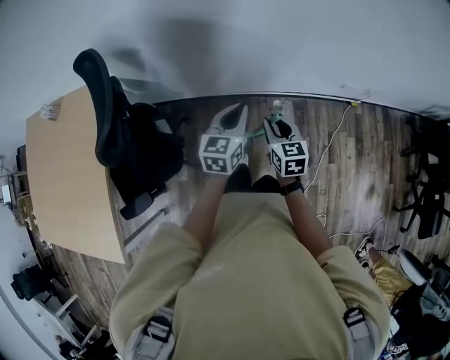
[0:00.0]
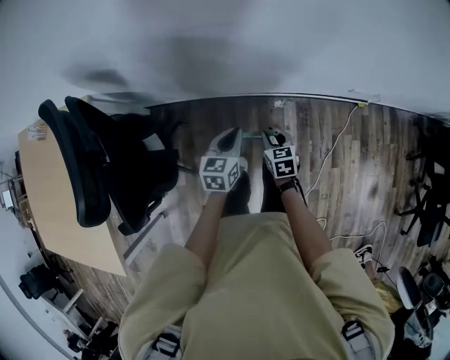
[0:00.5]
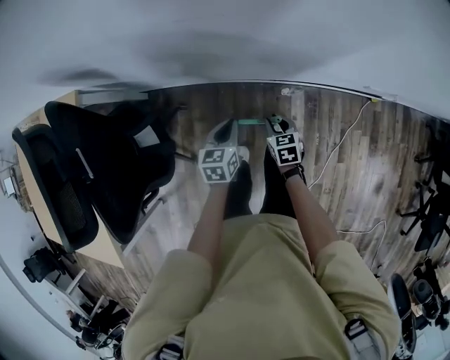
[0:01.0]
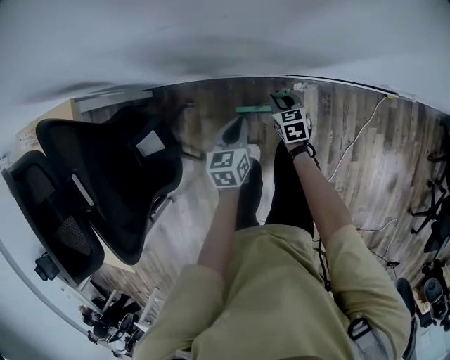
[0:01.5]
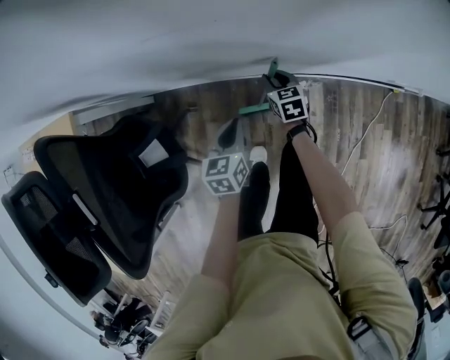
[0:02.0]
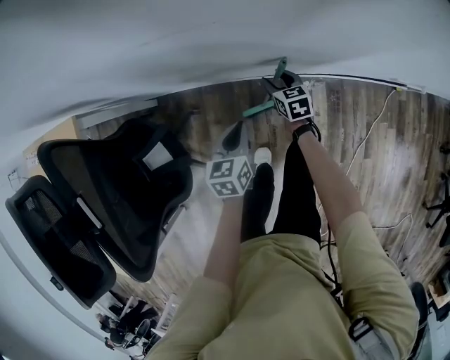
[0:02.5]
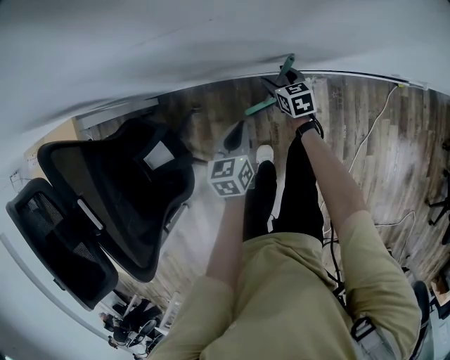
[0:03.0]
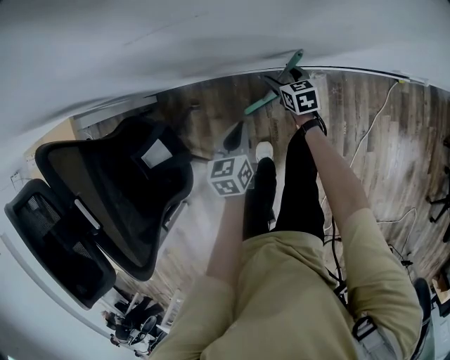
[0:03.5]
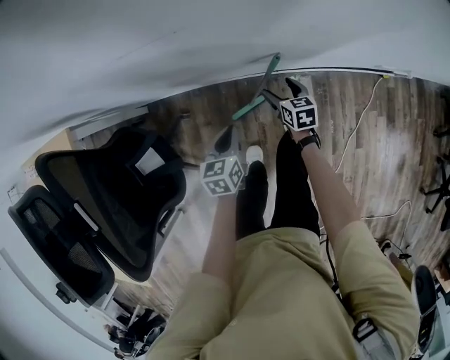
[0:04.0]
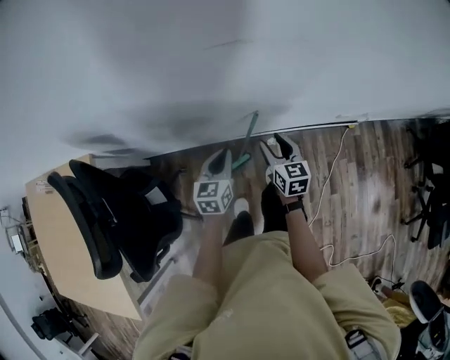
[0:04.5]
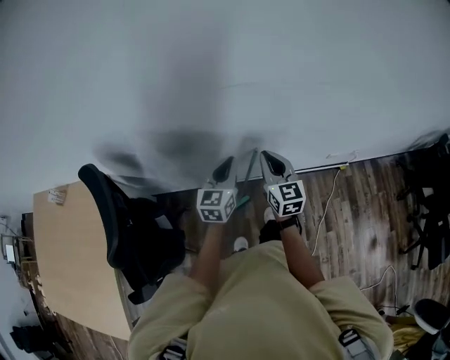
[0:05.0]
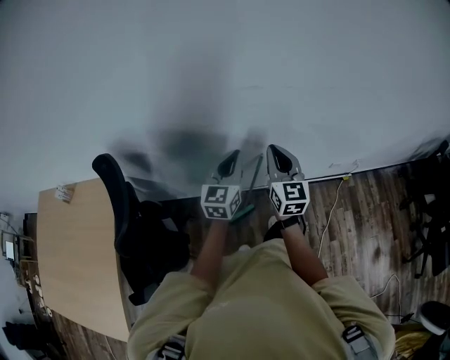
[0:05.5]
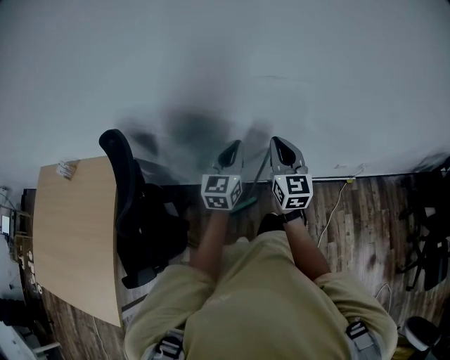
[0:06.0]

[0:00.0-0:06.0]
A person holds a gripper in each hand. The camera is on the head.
0.0 to 2.0 s: Both grippers travel together downward and forward, approximately 40 cm. The left gripper changes its angle by roughly 30 degrees.
2.0 to 4.0 s: The right gripper travels to the right and backward by approximately 10 cm, and opens up.
4.0 to 6.0 s: The two grippers go about 50 cm upward. The left gripper tips its fingers upward by some 40 degrees, while the right gripper points its fingers about 40 degrees further upward, and closes up.

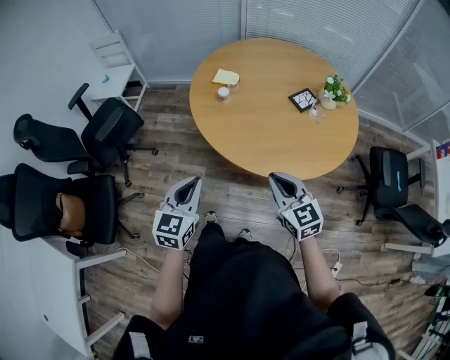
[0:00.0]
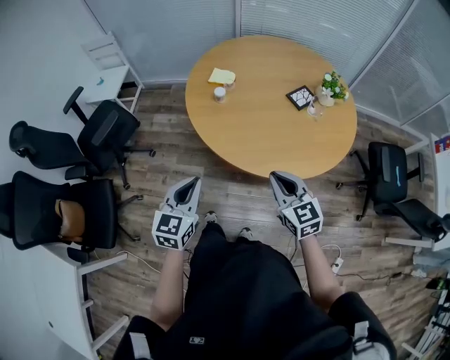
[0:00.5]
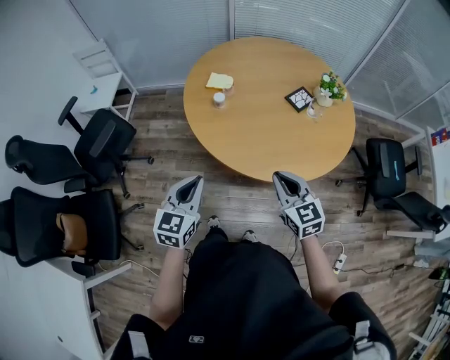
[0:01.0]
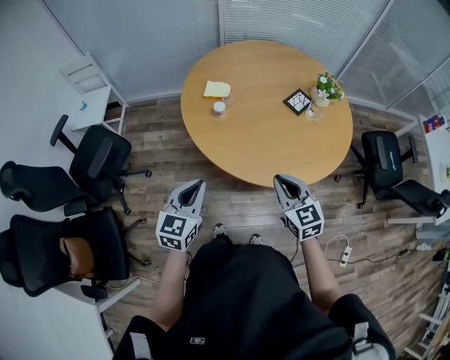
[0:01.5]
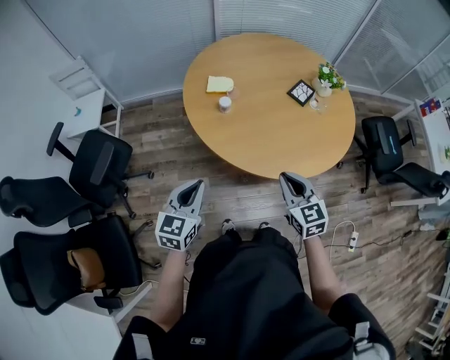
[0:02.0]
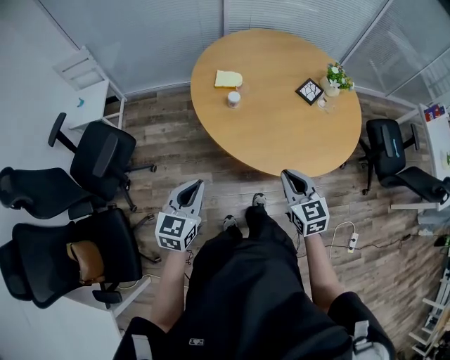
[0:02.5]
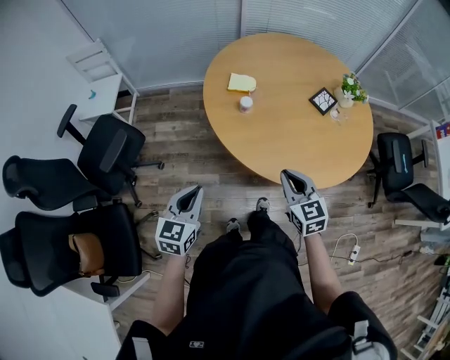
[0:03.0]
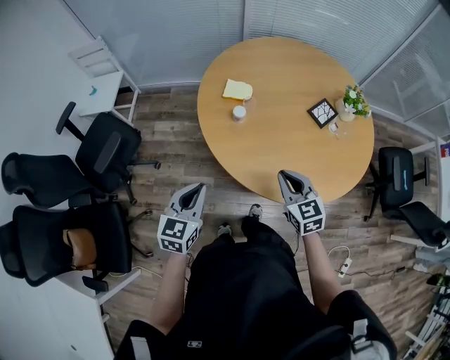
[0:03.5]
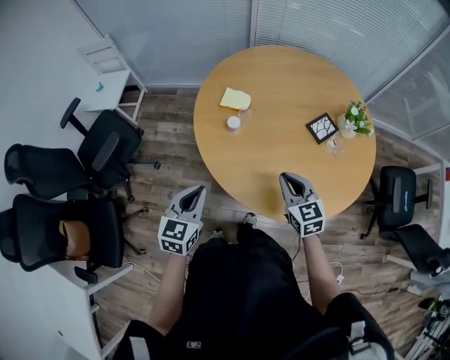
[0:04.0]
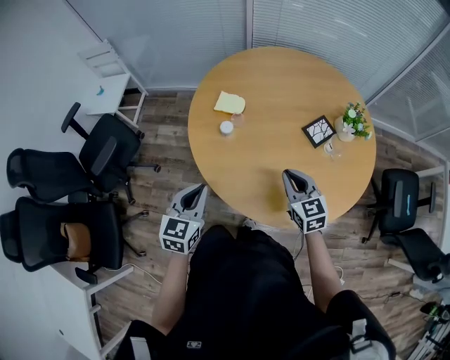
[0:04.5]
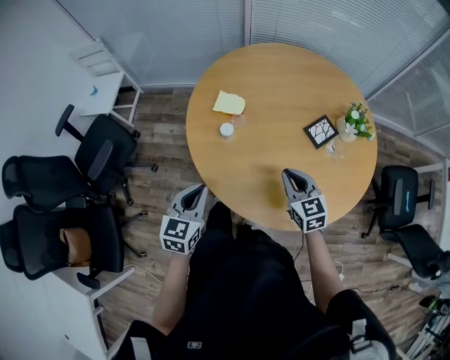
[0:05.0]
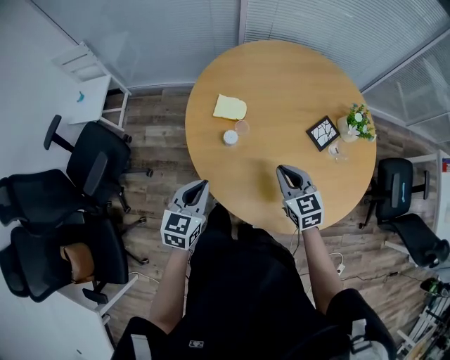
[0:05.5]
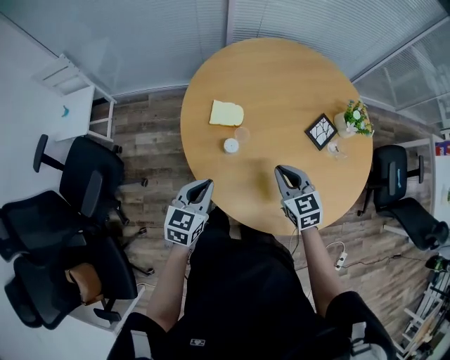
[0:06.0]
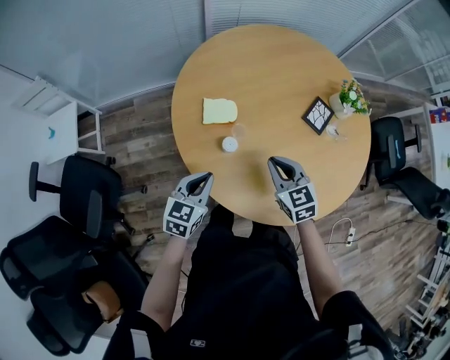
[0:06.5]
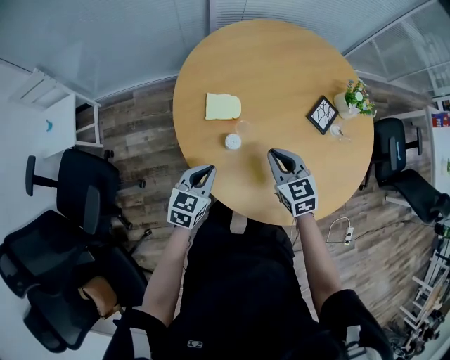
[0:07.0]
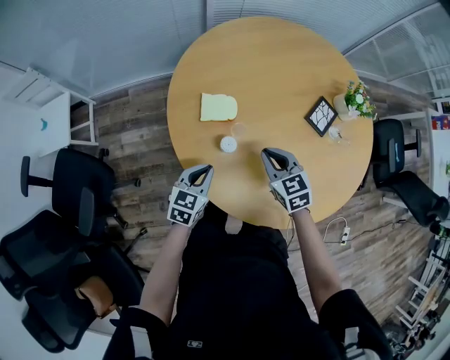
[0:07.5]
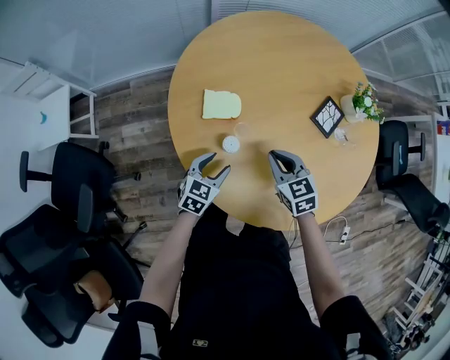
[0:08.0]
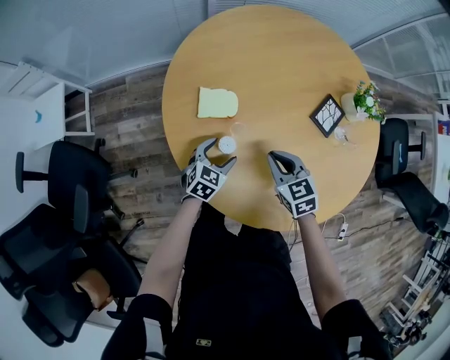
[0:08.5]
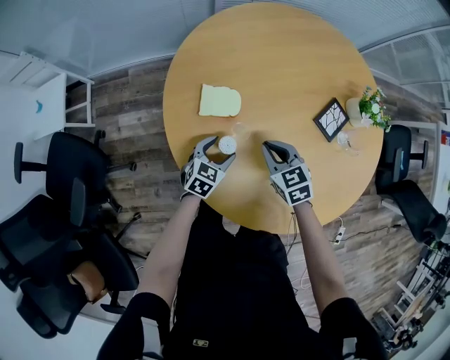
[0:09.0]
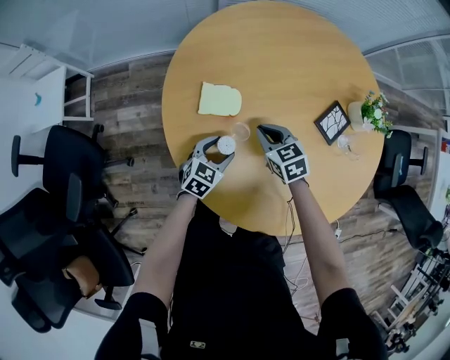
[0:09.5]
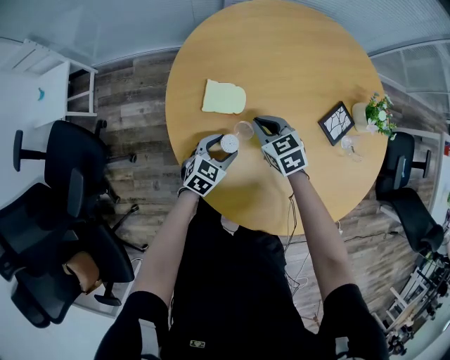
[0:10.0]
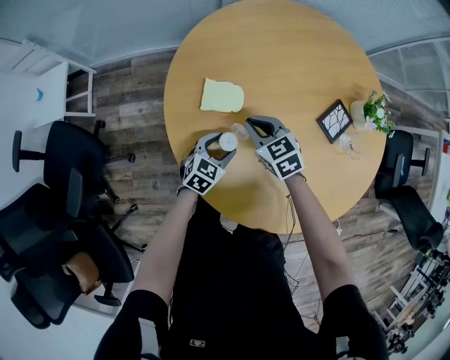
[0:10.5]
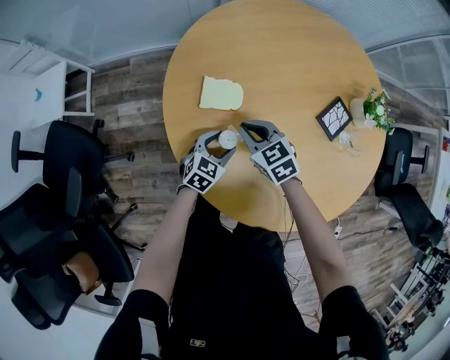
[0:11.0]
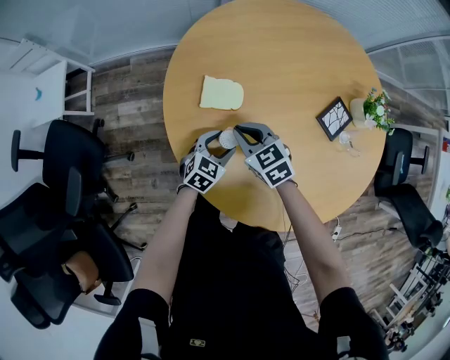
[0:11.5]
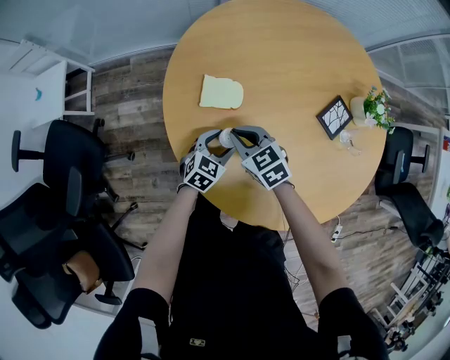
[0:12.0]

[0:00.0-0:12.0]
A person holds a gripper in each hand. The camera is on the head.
0.0 to 2.0 s: The right gripper is displaced to the left and forward by approximately 10 cm, and swivels about 20 degrees; the left gripper travels to the left and forward by roughly 15 cm.
2.0 to 4.0 s: The left gripper is displaced forward and to the right by roughly 10 cm, while the right gripper moves forward, about 15 cm.
4.0 to 6.0 s: The two grippers go roughly 15 cm forward.
6.0 to 8.0 s: The right gripper is displaced downward and forward by roughly 10 cm; the left gripper is displaced downward and forward by some 15 cm, and opens.
8.0 to 10.0 s: The right gripper travels forward, downward and to the left by some 15 cm. The left gripper heads forward, covering roughly 5 cm.
10.0 to 12.0 s: The right gripper goes roughly 10 cm to the left and backward.

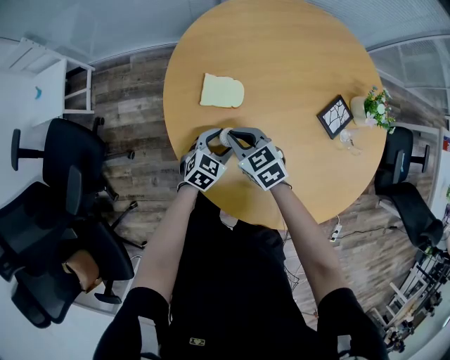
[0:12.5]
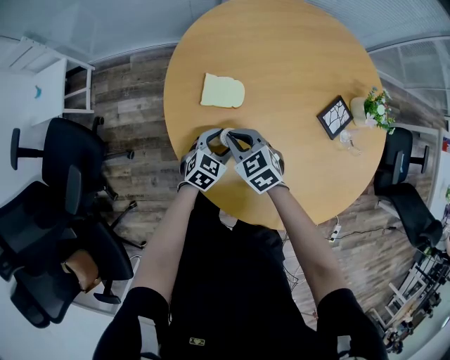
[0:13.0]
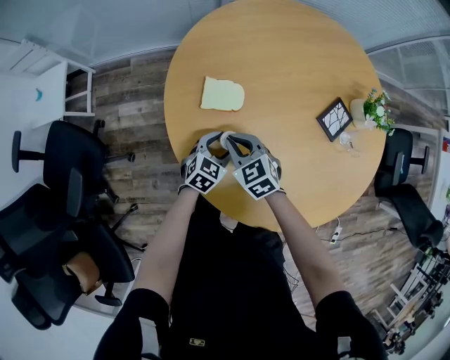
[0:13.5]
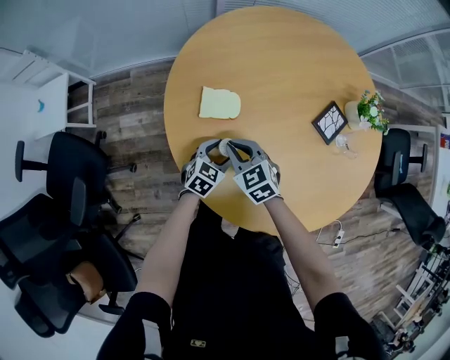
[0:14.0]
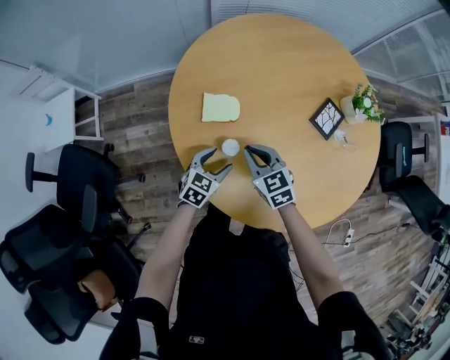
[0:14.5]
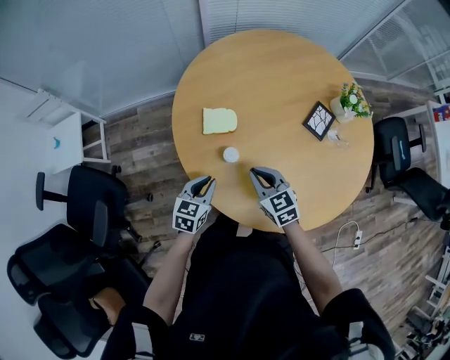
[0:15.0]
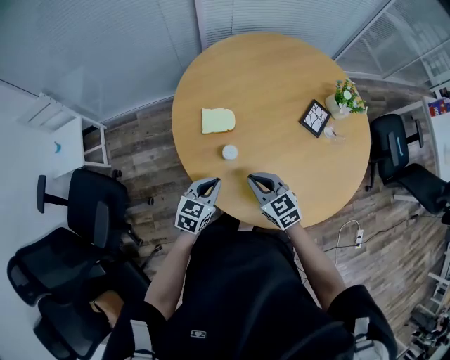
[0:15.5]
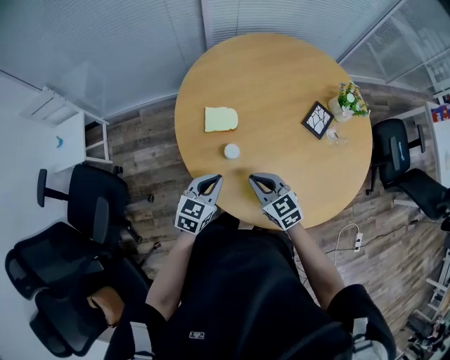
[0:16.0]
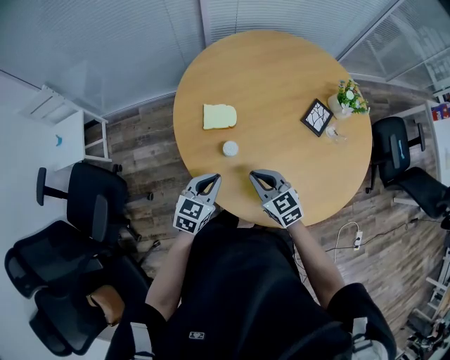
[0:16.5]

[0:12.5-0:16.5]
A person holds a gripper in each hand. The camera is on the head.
12.5 to 14.5 s: The right gripper moves approximately 5 cm; the left gripper moves some 5 cm.
14.5 to 16.5 s: The left gripper moves upward and backward, roughly 10 cm, and closes up, while the right gripper moves backward, about 10 cm.

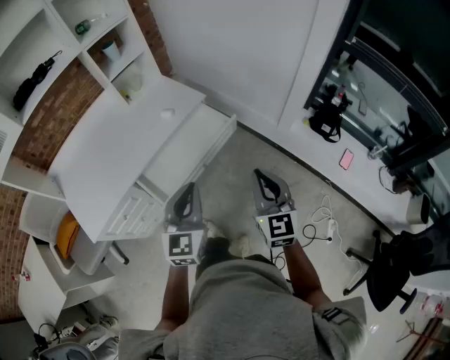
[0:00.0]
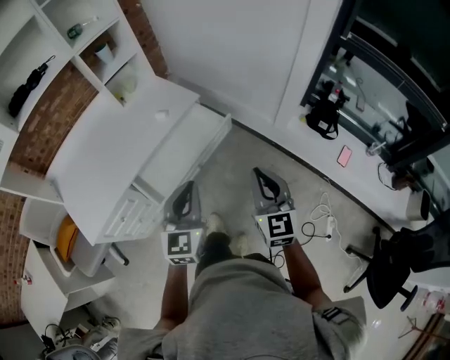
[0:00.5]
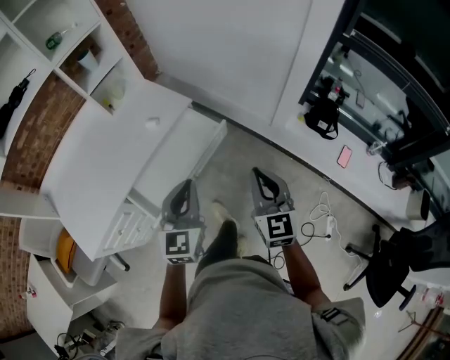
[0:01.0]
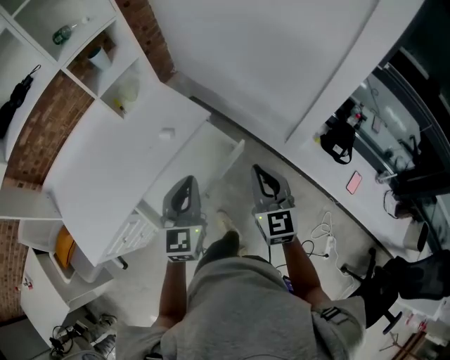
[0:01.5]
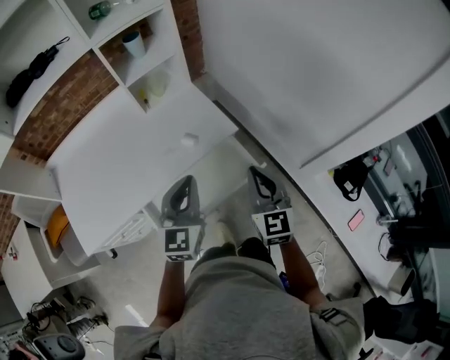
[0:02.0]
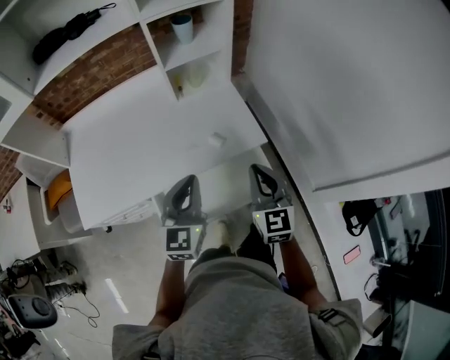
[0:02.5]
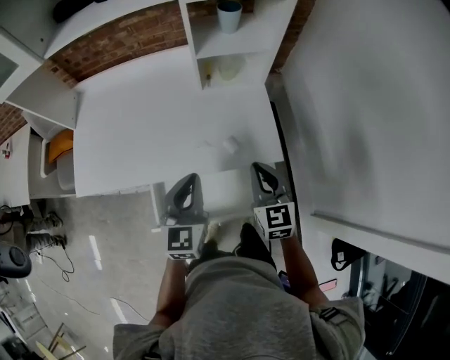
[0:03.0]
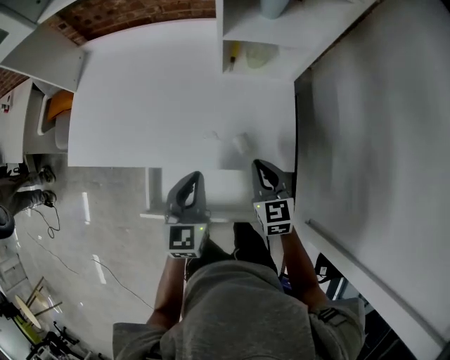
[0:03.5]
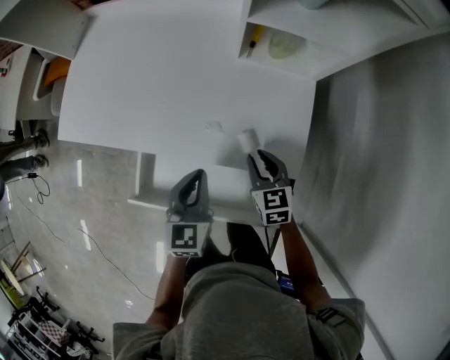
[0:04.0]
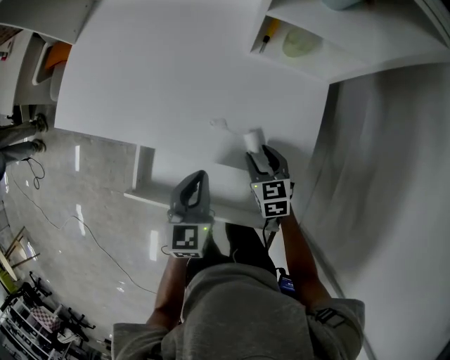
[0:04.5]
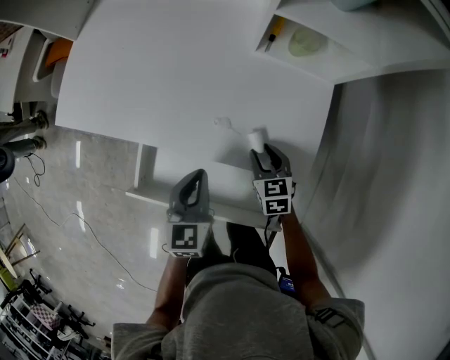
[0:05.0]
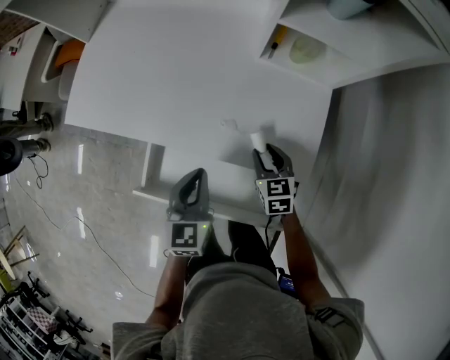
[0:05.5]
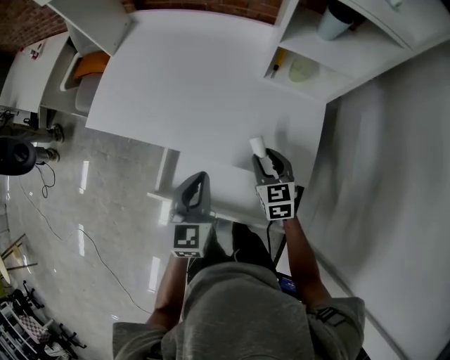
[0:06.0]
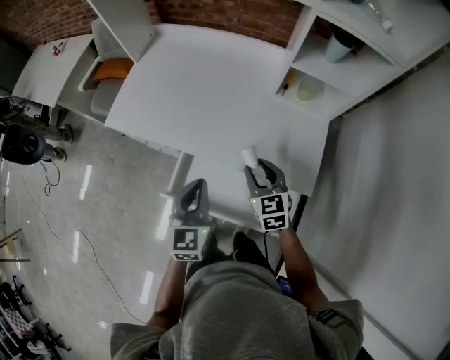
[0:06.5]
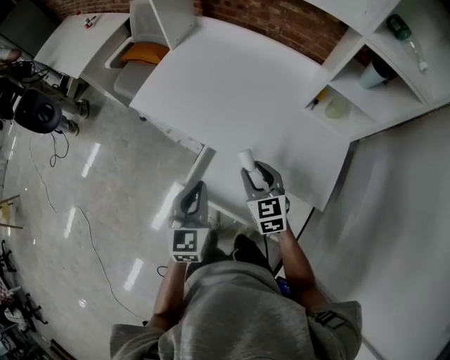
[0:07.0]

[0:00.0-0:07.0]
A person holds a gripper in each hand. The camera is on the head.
0.0 to 2.0 s: The two grippers go about 30 cm forward.
2.0 to 3.5 s: The left gripper changes place by about 20 cm, and turns by some 40 degrees; the right gripper changes place by approximately 30 cm, and changes its angle by roughly 40 degrees.
3.5 to 5.0 s: The left gripper moves downward, about 10 cm. The right gripper heads downward, covering about 15 cm, swivels about 20 degrees, and opens.
5.0 to 7.0 s: Both grippers move to the left and upward, some 25 cm. The right gripper swivels some 30 degrees.
